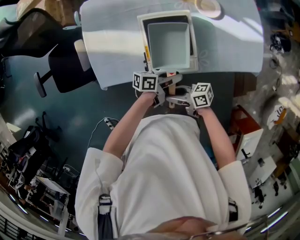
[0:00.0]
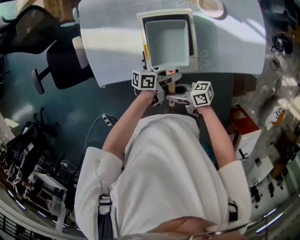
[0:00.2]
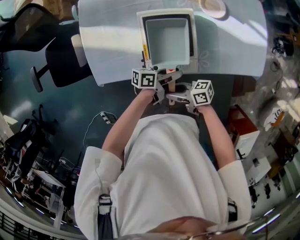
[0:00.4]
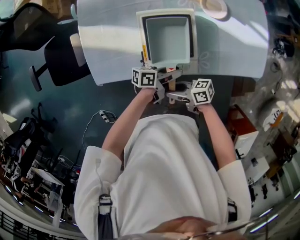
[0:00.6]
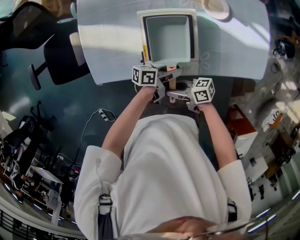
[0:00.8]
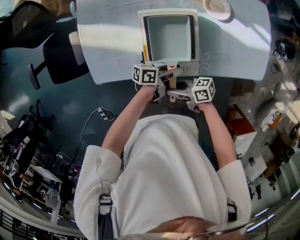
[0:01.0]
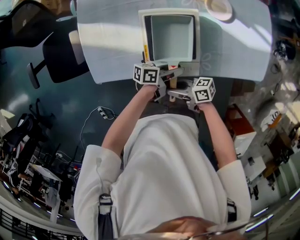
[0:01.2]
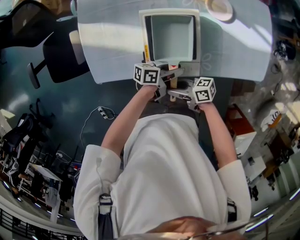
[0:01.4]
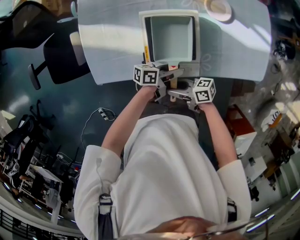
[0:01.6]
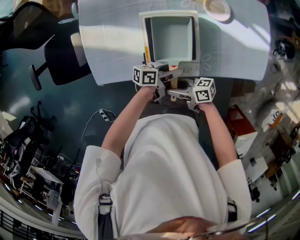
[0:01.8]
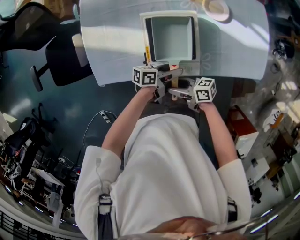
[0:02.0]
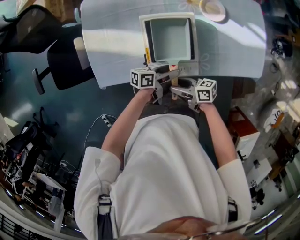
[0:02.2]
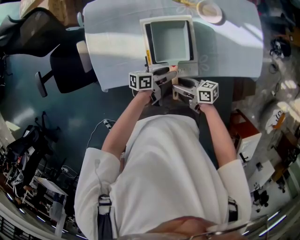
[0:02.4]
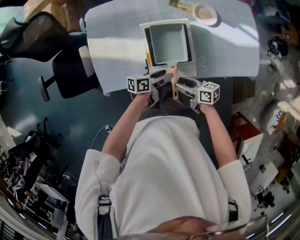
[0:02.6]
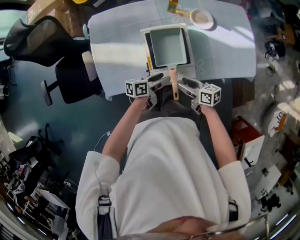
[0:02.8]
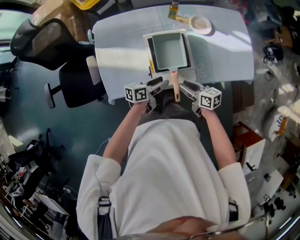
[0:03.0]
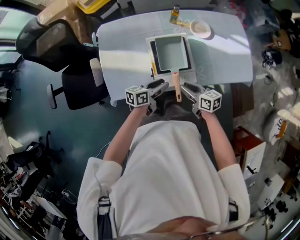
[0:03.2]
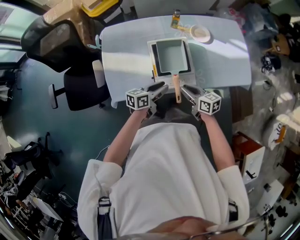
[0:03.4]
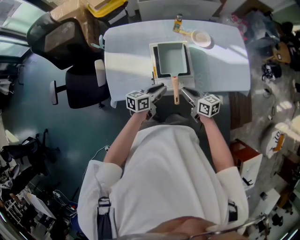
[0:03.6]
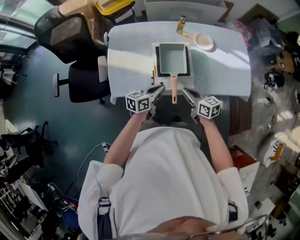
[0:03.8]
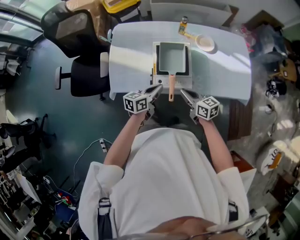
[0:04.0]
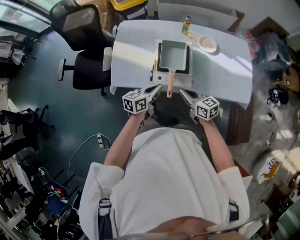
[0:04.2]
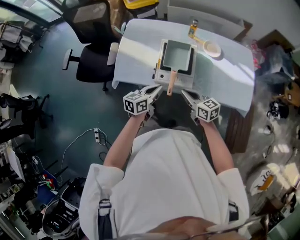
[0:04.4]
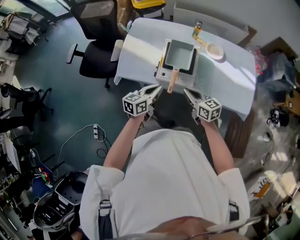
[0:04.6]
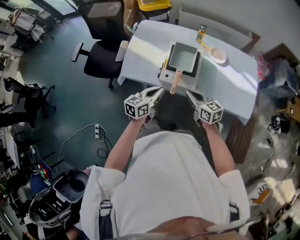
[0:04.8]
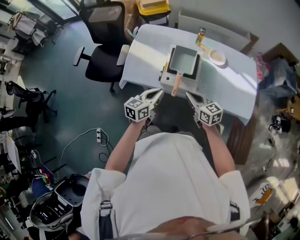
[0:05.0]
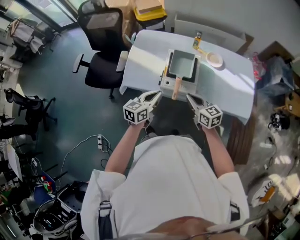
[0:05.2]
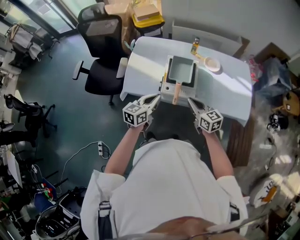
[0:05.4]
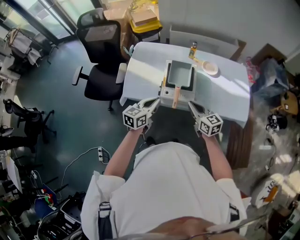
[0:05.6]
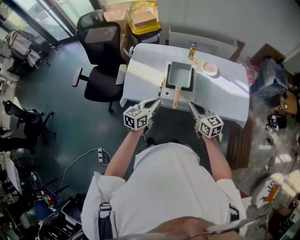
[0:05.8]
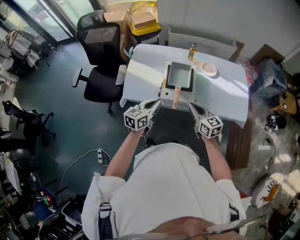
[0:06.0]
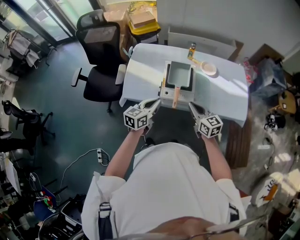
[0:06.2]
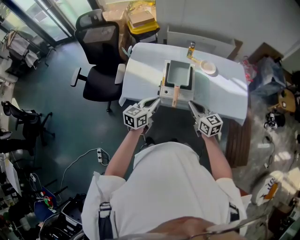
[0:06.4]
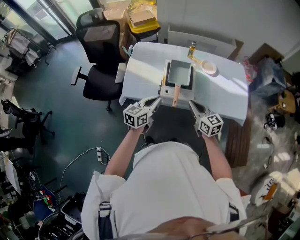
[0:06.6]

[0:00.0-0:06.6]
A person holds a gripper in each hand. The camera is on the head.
0.0 to 1.6 s: The right gripper shifts by about 5 cm; the left gripper moves approximately 5 cm.
1.6 to 3.2 s: The left gripper shifts by about 15 cm, and swivels roughly 30 degrees. The right gripper heads upward, covering some 5 cm, and swivels approximately 40 degrees.
3.2 to 5.0 s: The left gripper shifts some 20 cm backward and upward, swivels approximately 40 degrees, and closes its fingers. Meanwhile the right gripper heads upward and backward, covering roughly 15 cm, turns by about 30 degrees, and closes its fingers.
5.0 to 6.6 s: The left gripper ends up about 5 cm from where it was, while the right gripper heads upward, covering some 5 cm.

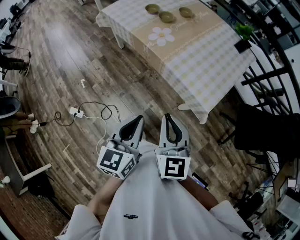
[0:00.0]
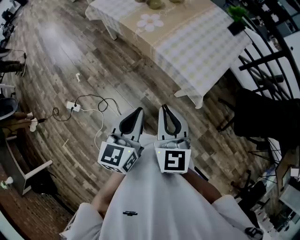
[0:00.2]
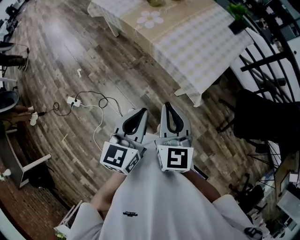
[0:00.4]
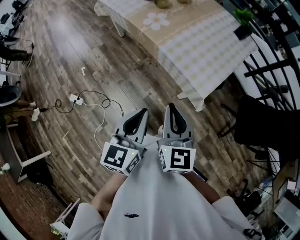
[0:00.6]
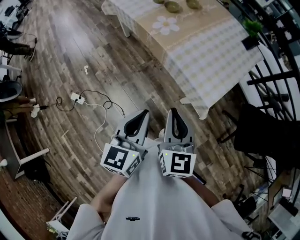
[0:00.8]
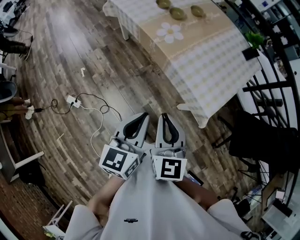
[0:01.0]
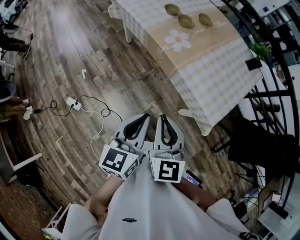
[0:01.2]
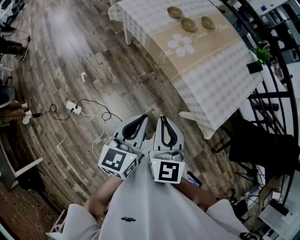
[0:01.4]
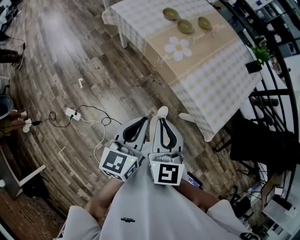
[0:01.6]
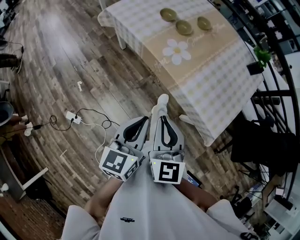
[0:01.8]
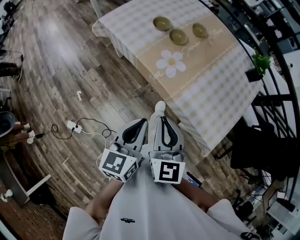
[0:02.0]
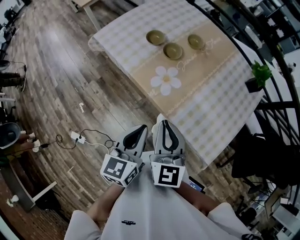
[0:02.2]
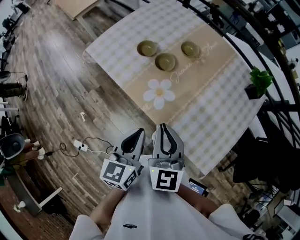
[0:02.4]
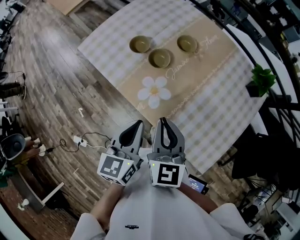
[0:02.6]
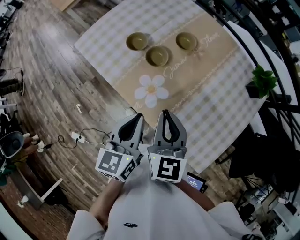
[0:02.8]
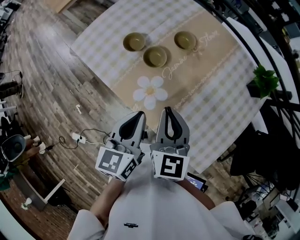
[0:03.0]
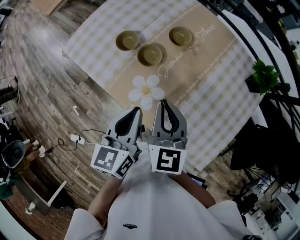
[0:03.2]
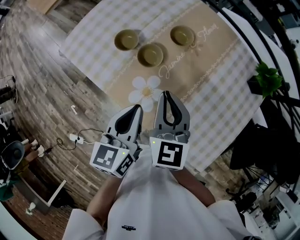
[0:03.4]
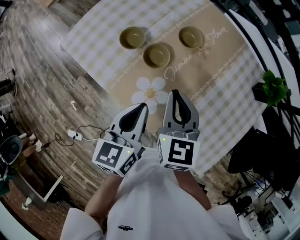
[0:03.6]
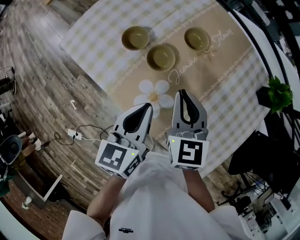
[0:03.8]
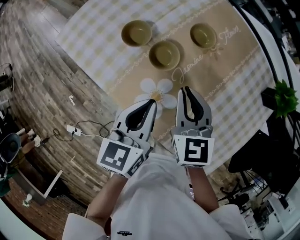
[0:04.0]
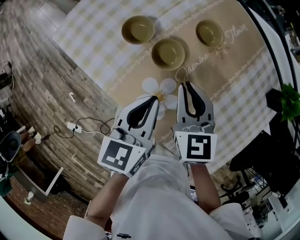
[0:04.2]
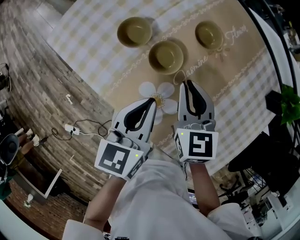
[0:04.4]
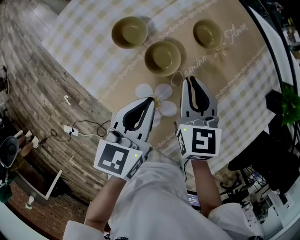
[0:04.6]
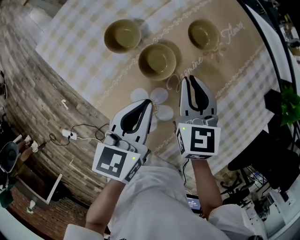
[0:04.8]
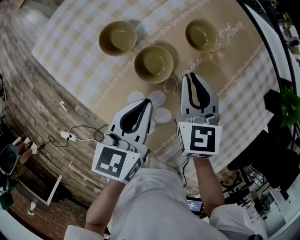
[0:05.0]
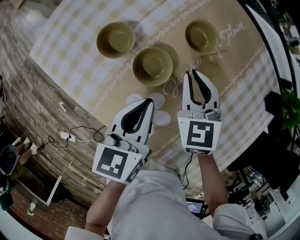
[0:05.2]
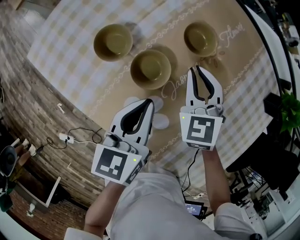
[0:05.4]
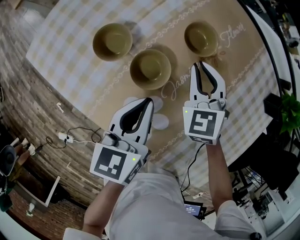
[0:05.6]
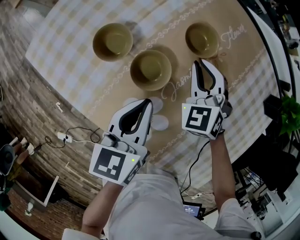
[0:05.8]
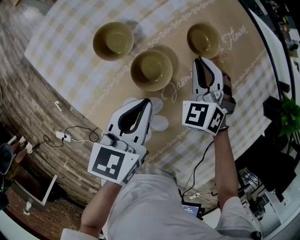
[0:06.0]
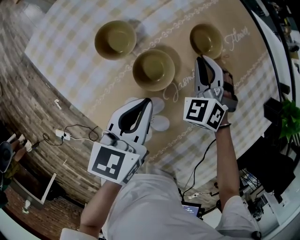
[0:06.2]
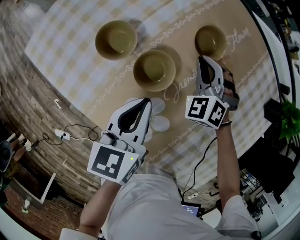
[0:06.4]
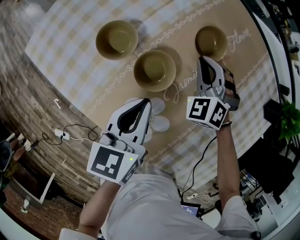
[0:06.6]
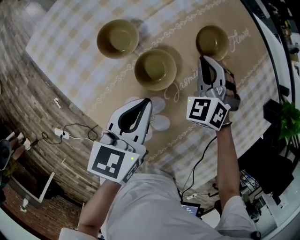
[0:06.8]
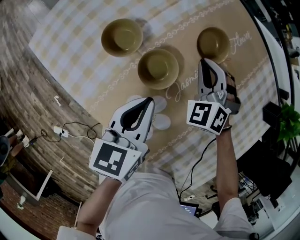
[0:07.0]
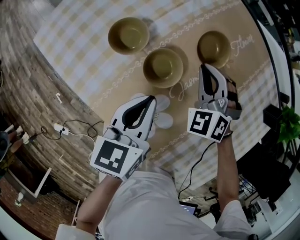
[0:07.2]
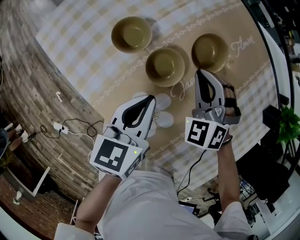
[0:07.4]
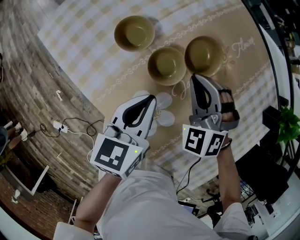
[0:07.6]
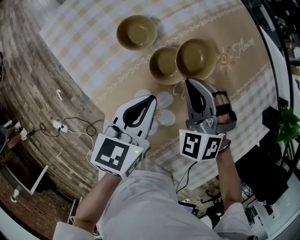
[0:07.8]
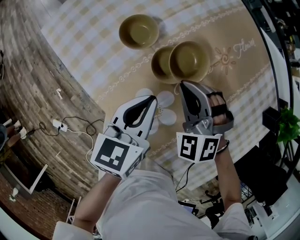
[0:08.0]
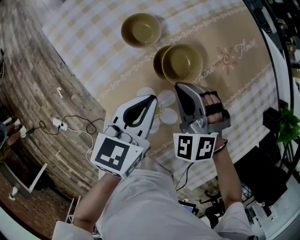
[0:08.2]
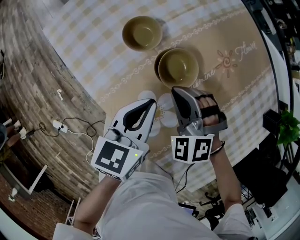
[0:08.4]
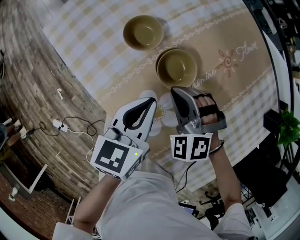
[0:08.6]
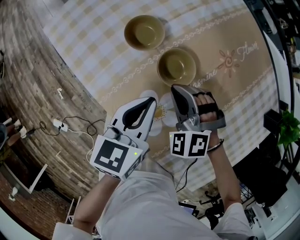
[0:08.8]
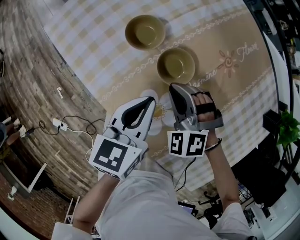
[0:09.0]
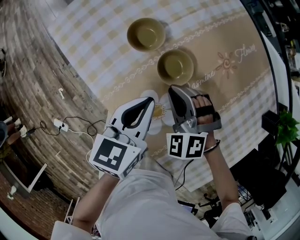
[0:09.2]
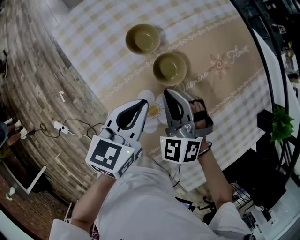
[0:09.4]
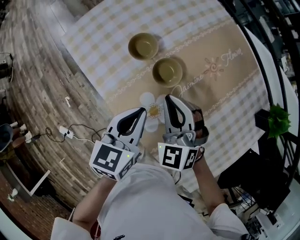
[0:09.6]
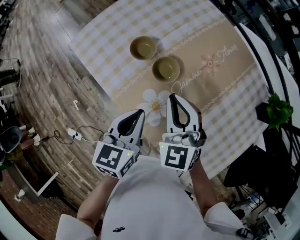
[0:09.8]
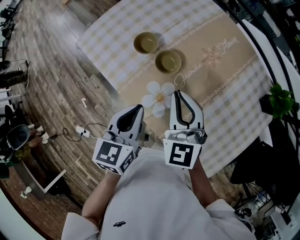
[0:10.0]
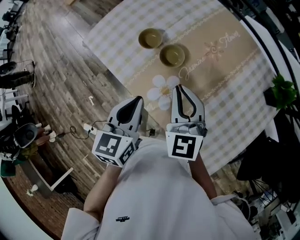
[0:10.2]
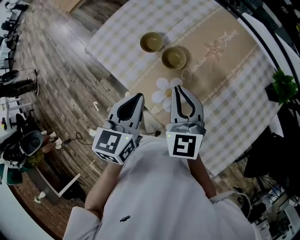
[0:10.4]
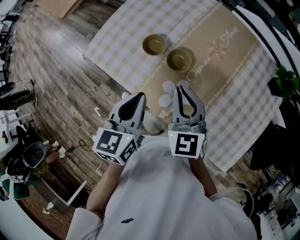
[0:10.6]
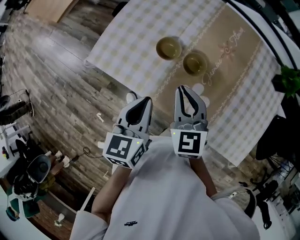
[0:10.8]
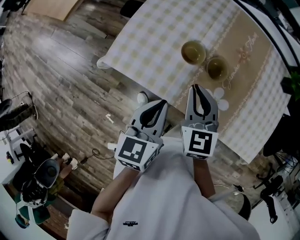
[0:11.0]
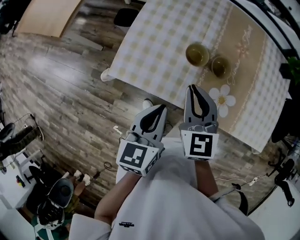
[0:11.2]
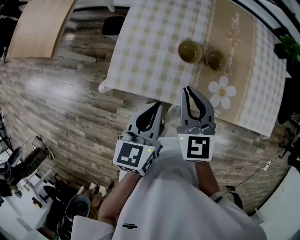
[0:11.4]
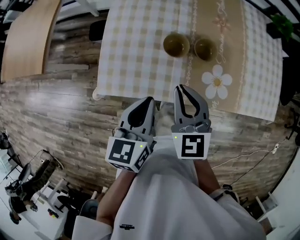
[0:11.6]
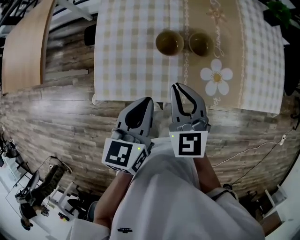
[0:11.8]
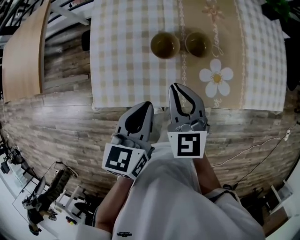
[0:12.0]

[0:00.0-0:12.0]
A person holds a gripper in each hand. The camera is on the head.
0.0 to 1.6 s: The right gripper goes approximately 20 cm to the left and forward. Meanwhile the left gripper goes some 20 cm forward and to the left.
1.6 to 3.0 s: The two grippers travel together, forward, roughly 40 cm.
3.0 to 4.4 s: Both grippers travel together downward and forward, approximately 25 cm.
4.4 to 6.0 s: The left gripper heads downward and forward, covering about 10 cm; the right gripper goes some 15 cm forward and downward, and rotates around the line of its fingers by approximately 50 degrees, counterclockwise from behind.
6.0 to 7.6 s: The right gripper moves backward, approximately 5 cm.
7.6 to 9.0 s: The right gripper travels to the left and backward by some 10 cm.
9.0 to 10.4 s: The left gripper is displaced upward and backward by roughly 20 cm. The right gripper travels upward by about 25 cm, and twists some 50 degrees clockwise, seen from behind.
10.4 to 12.0 s: The left gripper moves roughly 25 cm, and changes its angle by about 40 degrees, while the right gripper shifts by some 25 cm, and rotates about 40 degrees.

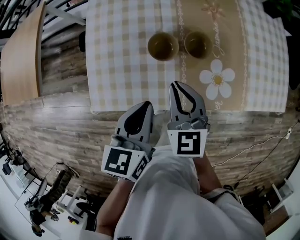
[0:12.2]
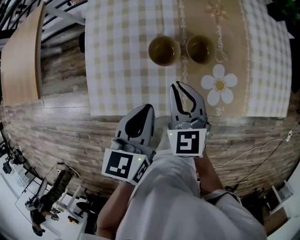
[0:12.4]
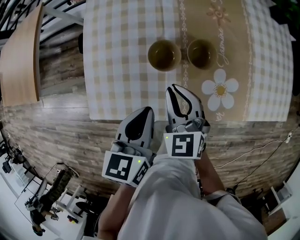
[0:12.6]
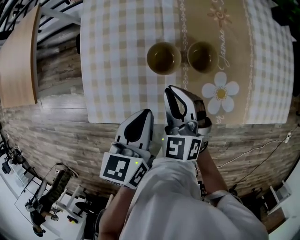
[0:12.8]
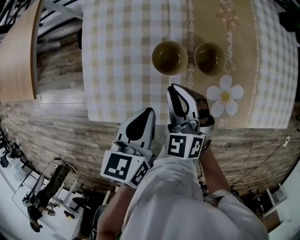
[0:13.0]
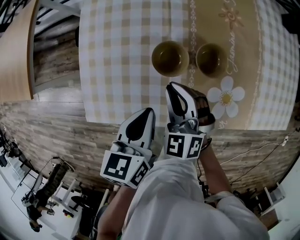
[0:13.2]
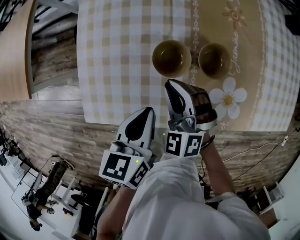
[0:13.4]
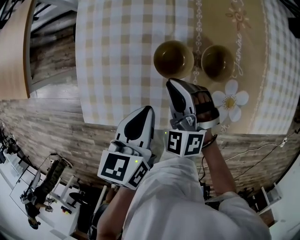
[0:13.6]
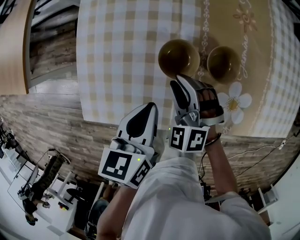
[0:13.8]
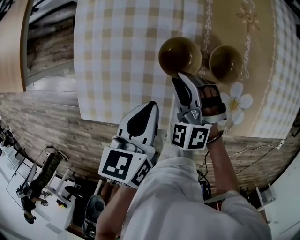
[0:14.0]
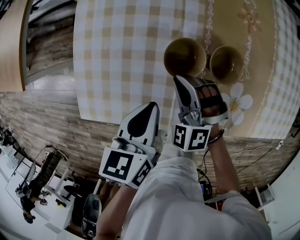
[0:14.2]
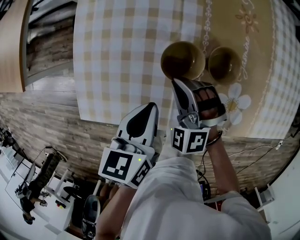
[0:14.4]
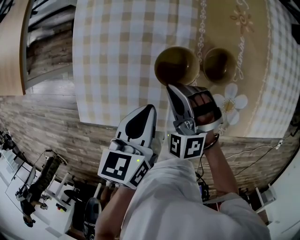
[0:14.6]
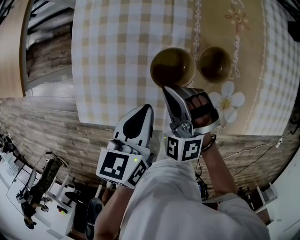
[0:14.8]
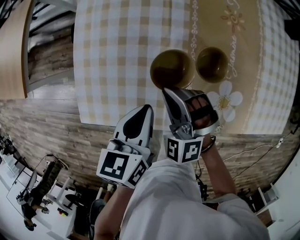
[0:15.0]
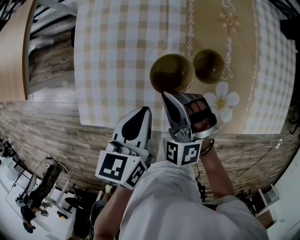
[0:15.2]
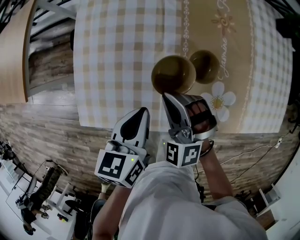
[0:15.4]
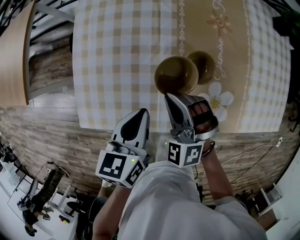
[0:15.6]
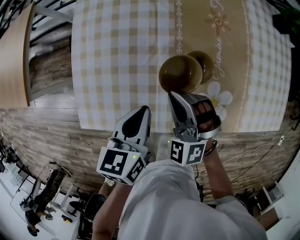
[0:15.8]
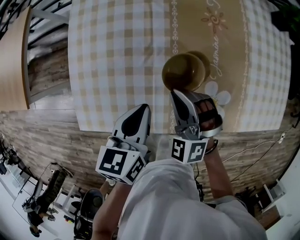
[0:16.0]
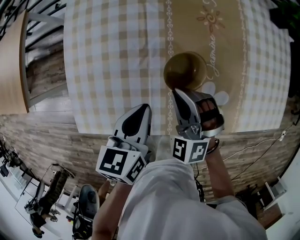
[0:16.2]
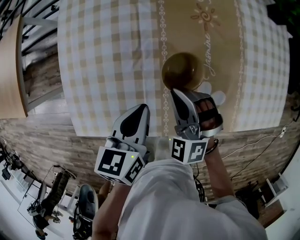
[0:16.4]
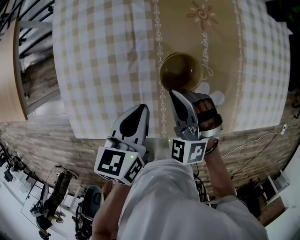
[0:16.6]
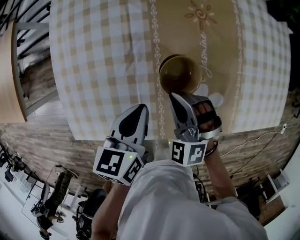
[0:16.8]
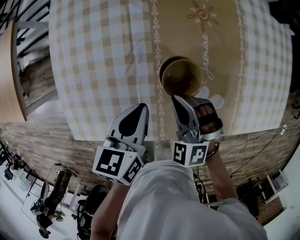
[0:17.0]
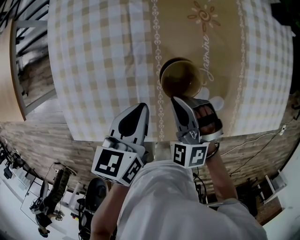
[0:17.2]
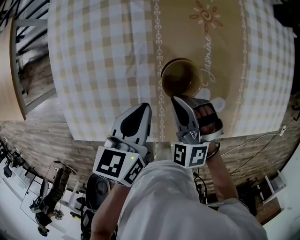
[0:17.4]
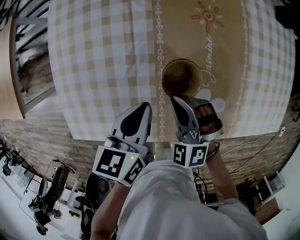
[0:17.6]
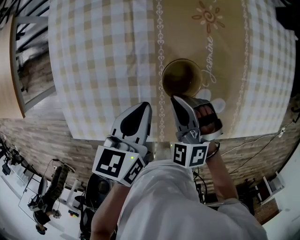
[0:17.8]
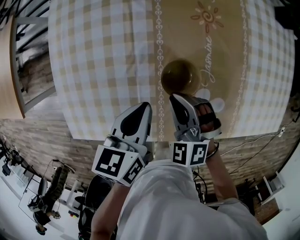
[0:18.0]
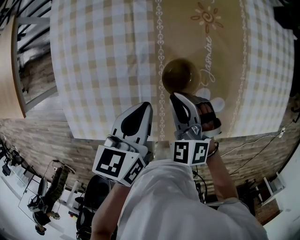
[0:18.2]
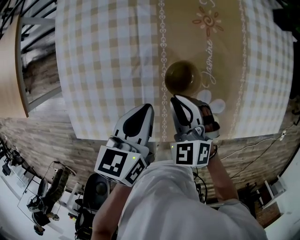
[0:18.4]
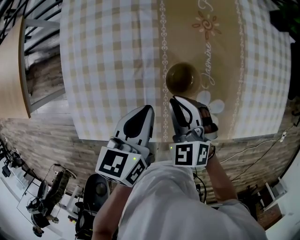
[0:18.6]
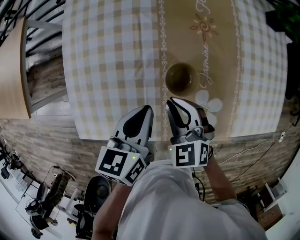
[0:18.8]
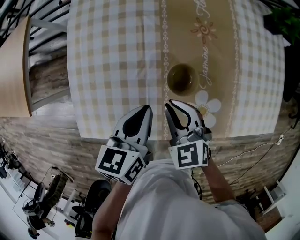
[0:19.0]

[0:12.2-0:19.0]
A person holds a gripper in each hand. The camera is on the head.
12.2 to 13.6 s: The grippers both shift downward and forward by approximately 15 cm. The right gripper changes its angle by roughly 40 degrees.
13.6 to 15.0 s: The grippers stay close to where they were, moving slightly.
15.0 to 16.2 s: The left gripper moves to the right, approximately 5 cm, while the right gripper is displaced to the right by roughly 10 cm.
16.2 to 17.6 s: The left gripper changes place by about 5 cm, while the right gripper heads downward, covering roughly 5 cm.
17.6 to 19.0 s: The two grippers go some 5 cm upward. The right gripper swivels roughly 30 degrees.
